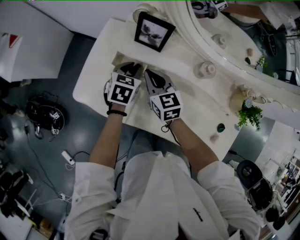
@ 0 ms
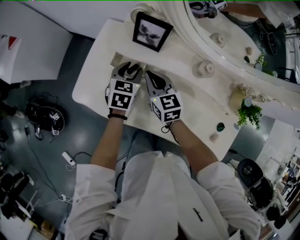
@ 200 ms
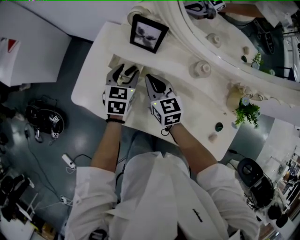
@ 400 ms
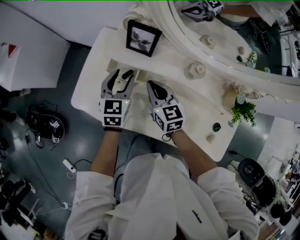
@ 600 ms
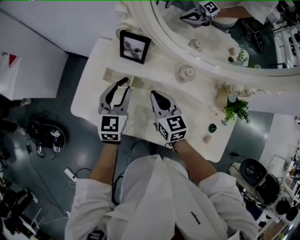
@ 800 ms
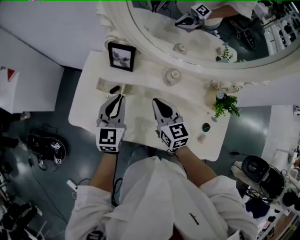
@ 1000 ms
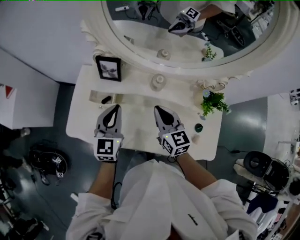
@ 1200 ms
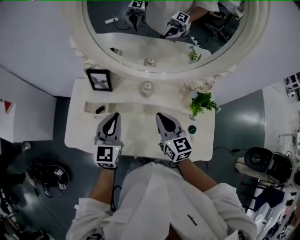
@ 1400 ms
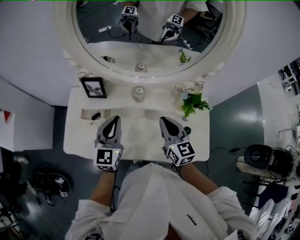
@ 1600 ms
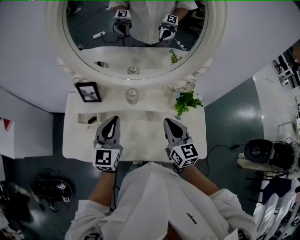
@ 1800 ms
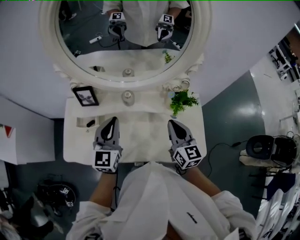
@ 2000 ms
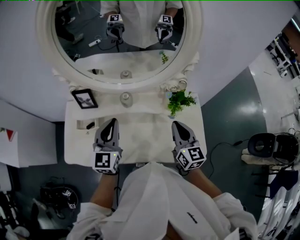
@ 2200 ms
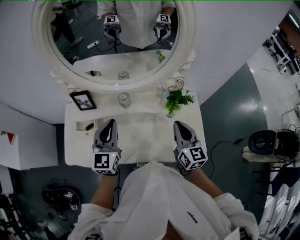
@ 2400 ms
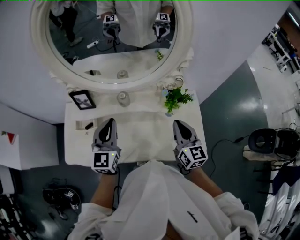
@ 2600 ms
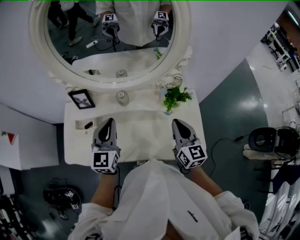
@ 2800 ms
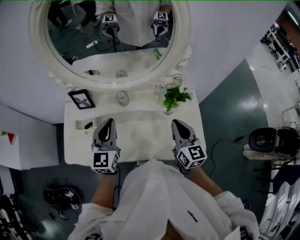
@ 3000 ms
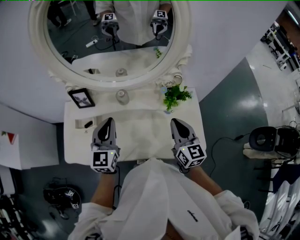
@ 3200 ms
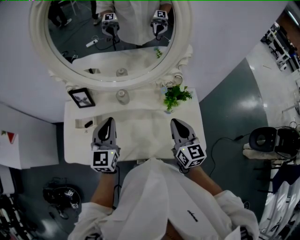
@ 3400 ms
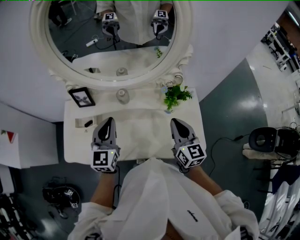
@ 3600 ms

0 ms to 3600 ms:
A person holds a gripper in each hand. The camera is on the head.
0 ms to 1800 ms: The left gripper is displaced upward, to the right and backward by some 35 cm, and angles its fingers upward, by about 40 degrees; the right gripper moves to the right, upward and backward, approximately 40 cm, and rotates some 30 degrees.
1800 ms to 3600 ms: The right gripper heads to the right, covering roughly 10 cm.

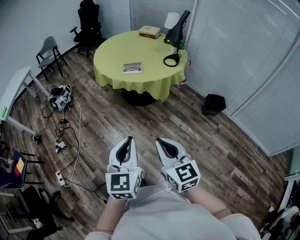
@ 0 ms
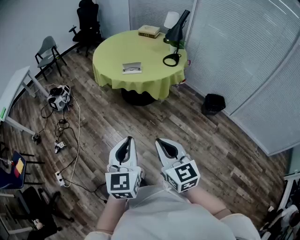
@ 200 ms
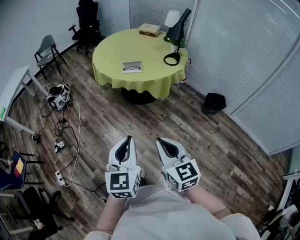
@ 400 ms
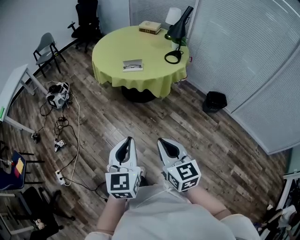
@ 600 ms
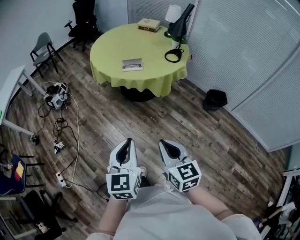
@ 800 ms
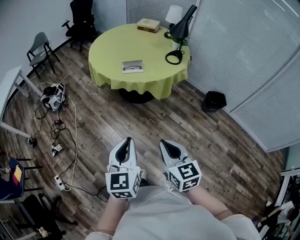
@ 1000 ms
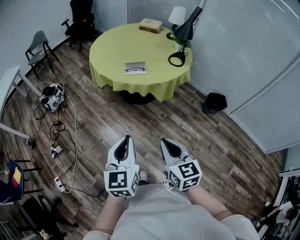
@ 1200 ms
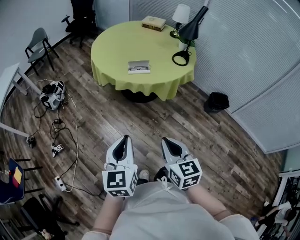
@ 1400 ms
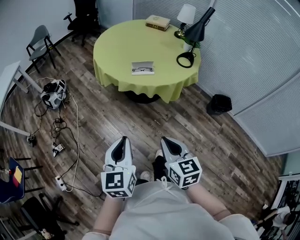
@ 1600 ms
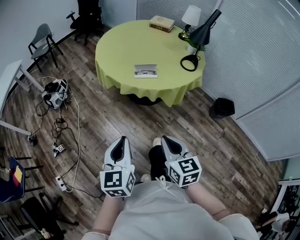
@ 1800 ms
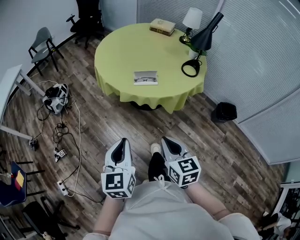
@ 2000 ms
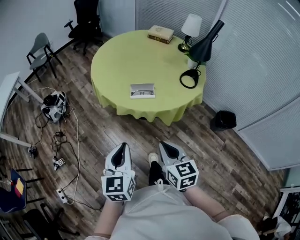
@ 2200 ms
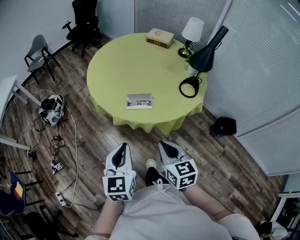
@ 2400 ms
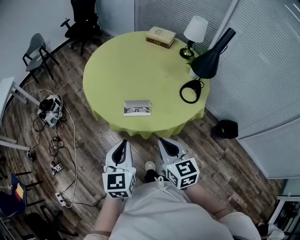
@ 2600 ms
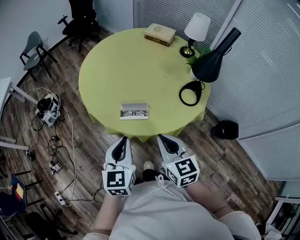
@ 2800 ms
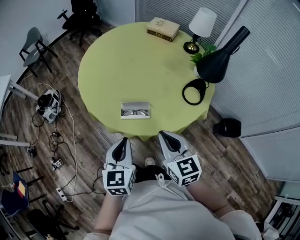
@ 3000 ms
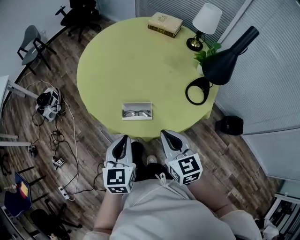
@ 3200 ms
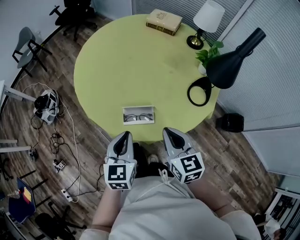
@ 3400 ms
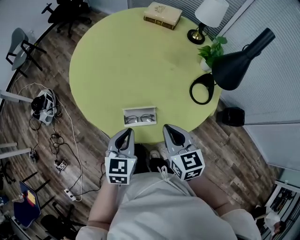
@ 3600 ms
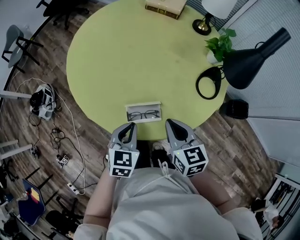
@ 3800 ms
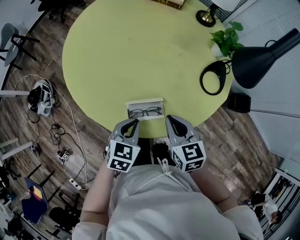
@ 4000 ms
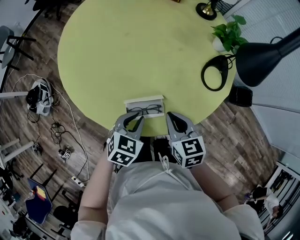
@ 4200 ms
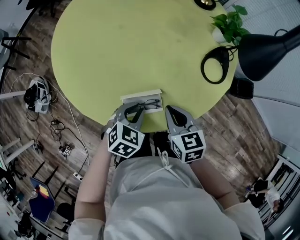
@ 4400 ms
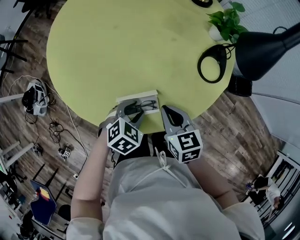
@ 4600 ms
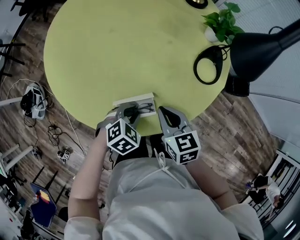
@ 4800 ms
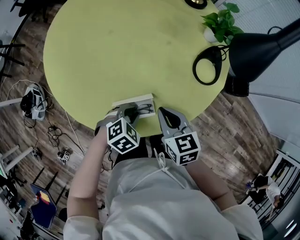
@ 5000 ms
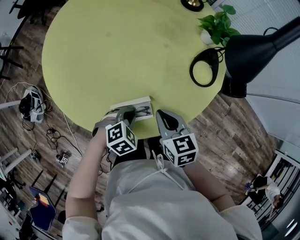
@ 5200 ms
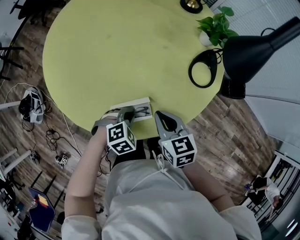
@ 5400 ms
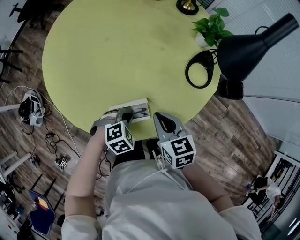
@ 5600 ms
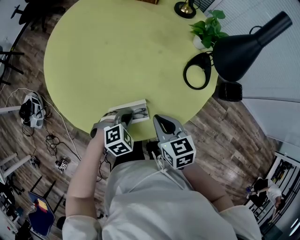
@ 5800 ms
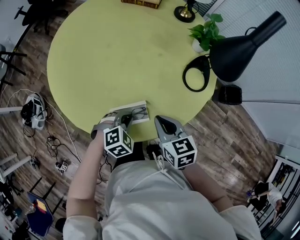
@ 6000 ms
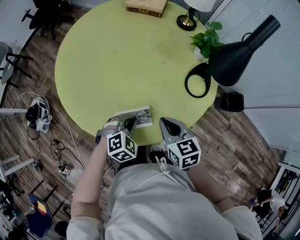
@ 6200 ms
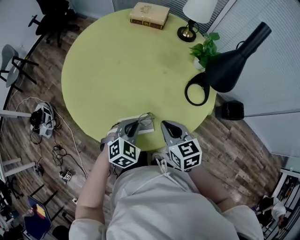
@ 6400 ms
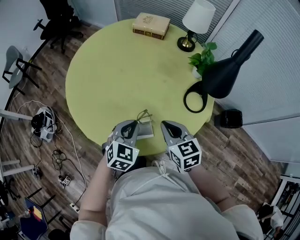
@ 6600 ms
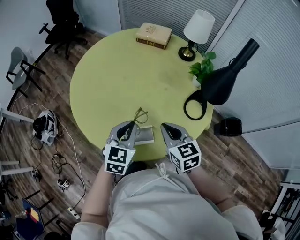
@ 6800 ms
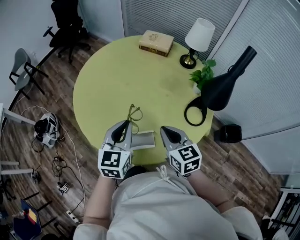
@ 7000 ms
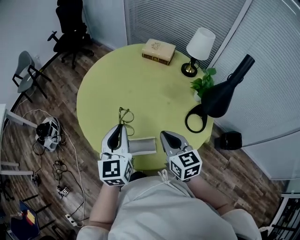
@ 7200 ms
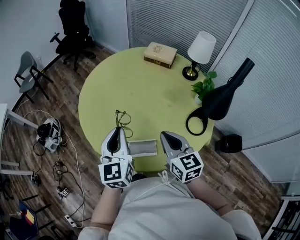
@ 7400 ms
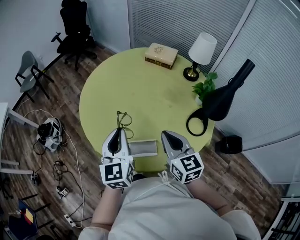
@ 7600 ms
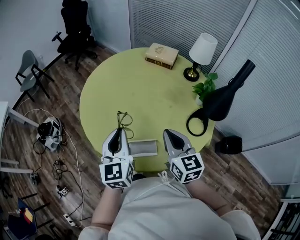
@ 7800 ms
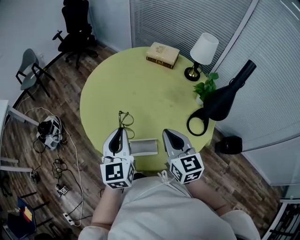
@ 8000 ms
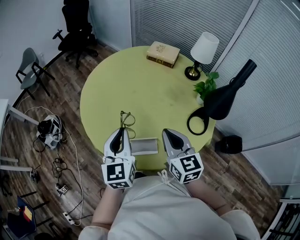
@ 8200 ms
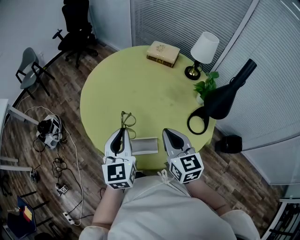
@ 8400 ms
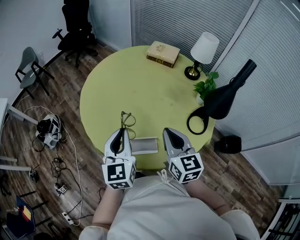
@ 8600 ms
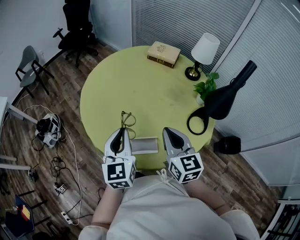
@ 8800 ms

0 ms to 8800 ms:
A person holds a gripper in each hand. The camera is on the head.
0 ms to 1400 ms: The right gripper moves forward and downward, about 20 cm; the left gripper moves forward and to the left, roughly 20 cm.
1400 ms to 3000 ms: The pair of grippers is taken forward, about 50 cm.
3000 ms to 4400 ms: The two grippers go approximately 25 cm downward and forward. The left gripper tips its fingers downward by roughly 30 degrees. The right gripper changes its angle by roughly 20 degrees.
4400 ms to 5800 ms: The left gripper changes its angle by about 30 degrees, and opens, then closes once more.
5800 ms to 7400 ms: The left gripper moves upward, approximately 30 cm, and tips its fingers upward by some 60 degrees. Meanwhile the right gripper moves upward, roughly 15 cm, and swivels roughly 20 degrees.
7400 ms to 8800 ms: There are only small adjustments of the grippers.

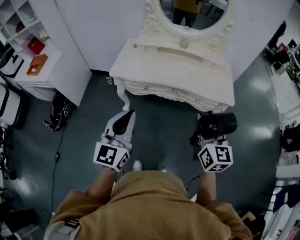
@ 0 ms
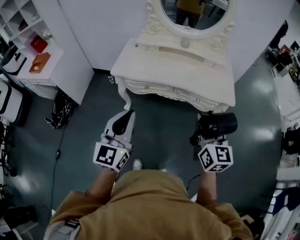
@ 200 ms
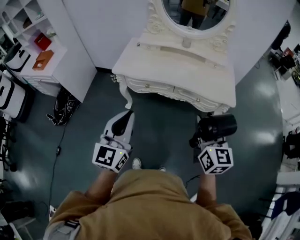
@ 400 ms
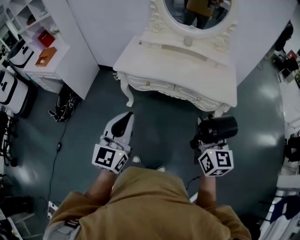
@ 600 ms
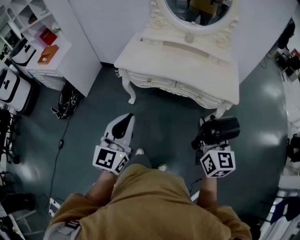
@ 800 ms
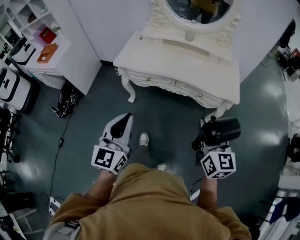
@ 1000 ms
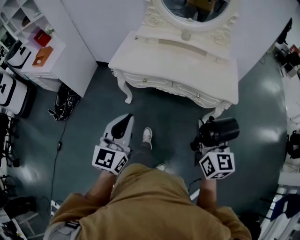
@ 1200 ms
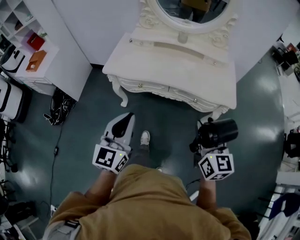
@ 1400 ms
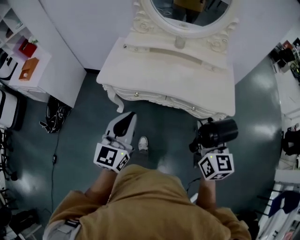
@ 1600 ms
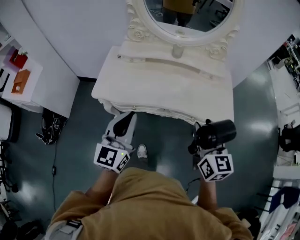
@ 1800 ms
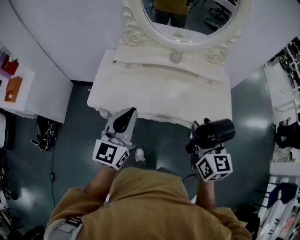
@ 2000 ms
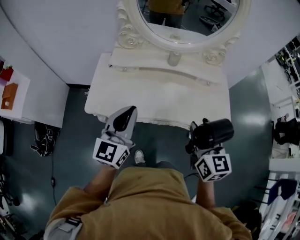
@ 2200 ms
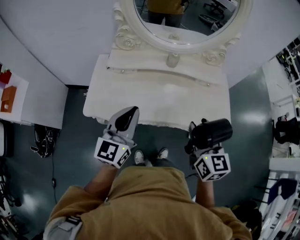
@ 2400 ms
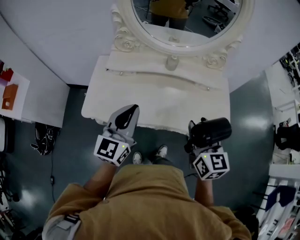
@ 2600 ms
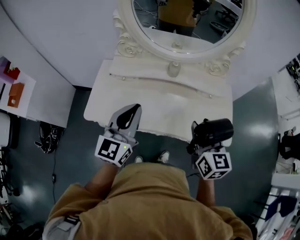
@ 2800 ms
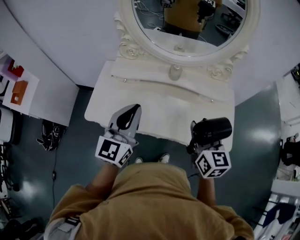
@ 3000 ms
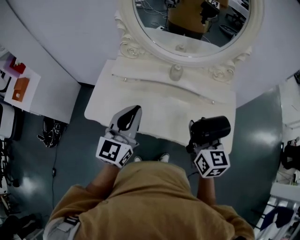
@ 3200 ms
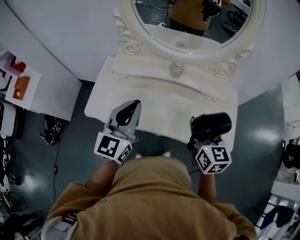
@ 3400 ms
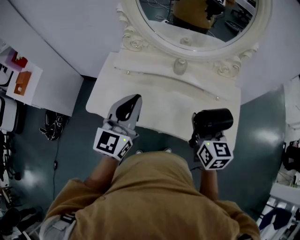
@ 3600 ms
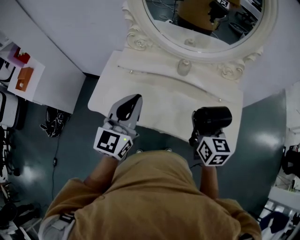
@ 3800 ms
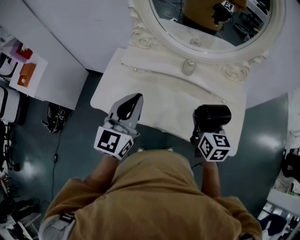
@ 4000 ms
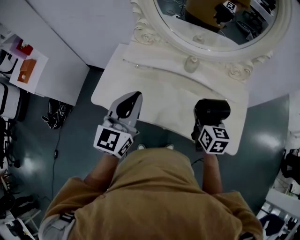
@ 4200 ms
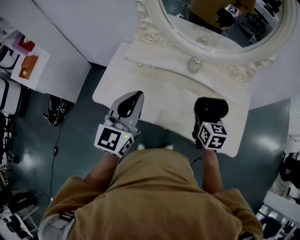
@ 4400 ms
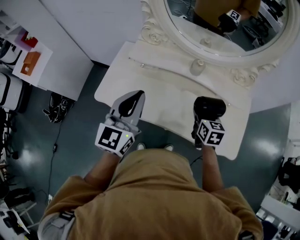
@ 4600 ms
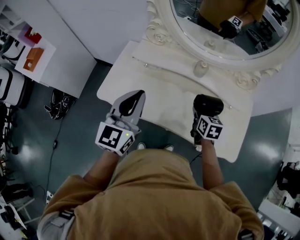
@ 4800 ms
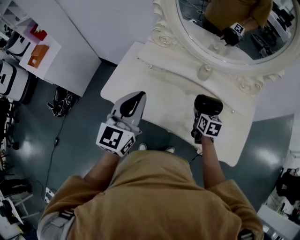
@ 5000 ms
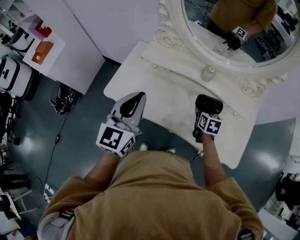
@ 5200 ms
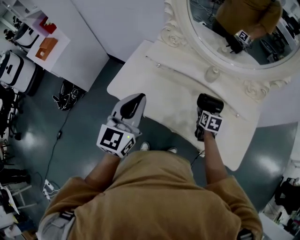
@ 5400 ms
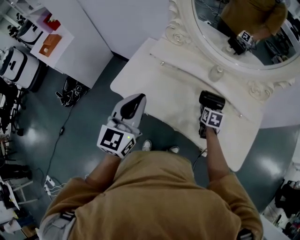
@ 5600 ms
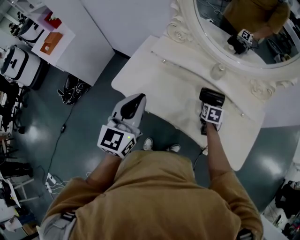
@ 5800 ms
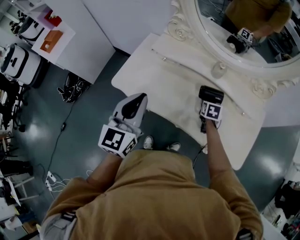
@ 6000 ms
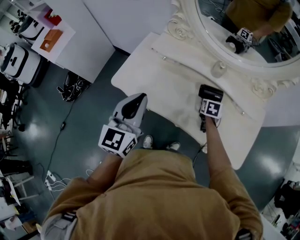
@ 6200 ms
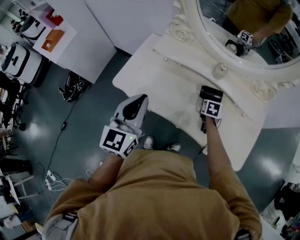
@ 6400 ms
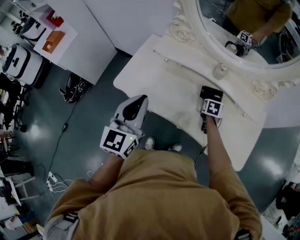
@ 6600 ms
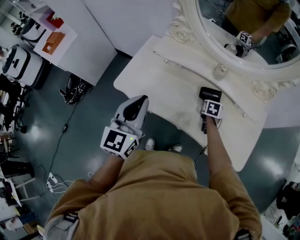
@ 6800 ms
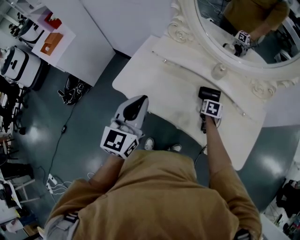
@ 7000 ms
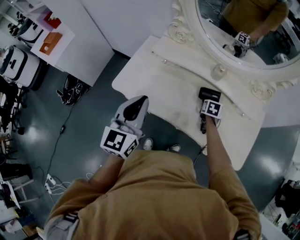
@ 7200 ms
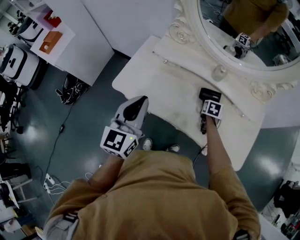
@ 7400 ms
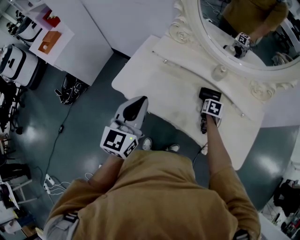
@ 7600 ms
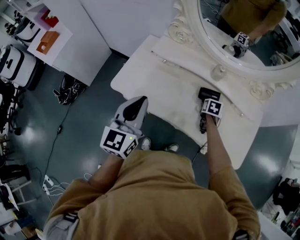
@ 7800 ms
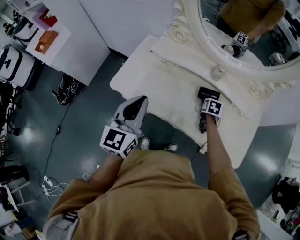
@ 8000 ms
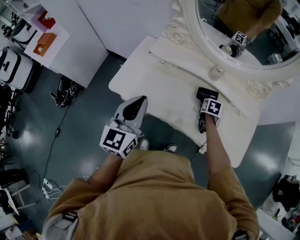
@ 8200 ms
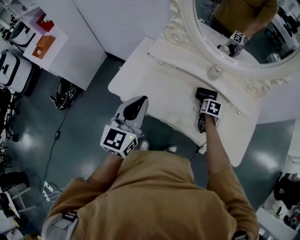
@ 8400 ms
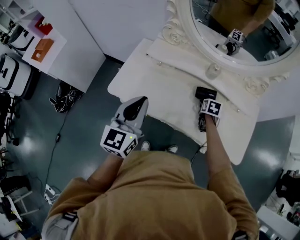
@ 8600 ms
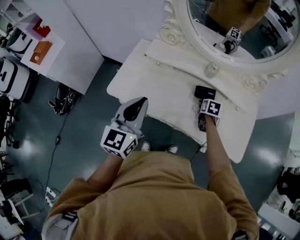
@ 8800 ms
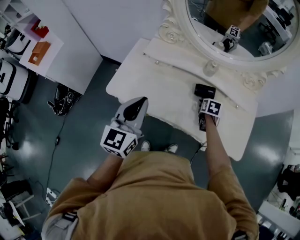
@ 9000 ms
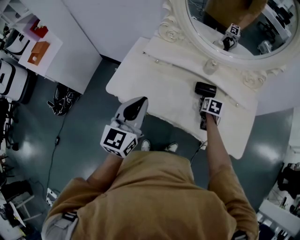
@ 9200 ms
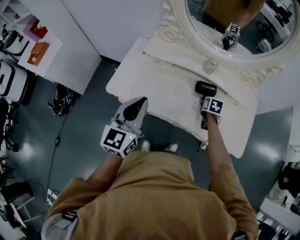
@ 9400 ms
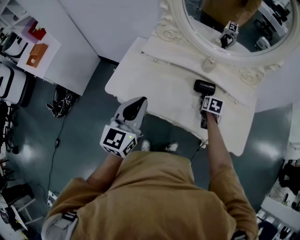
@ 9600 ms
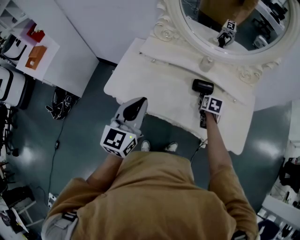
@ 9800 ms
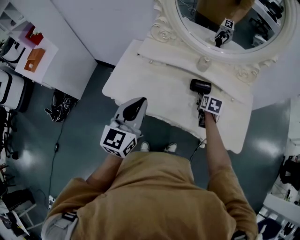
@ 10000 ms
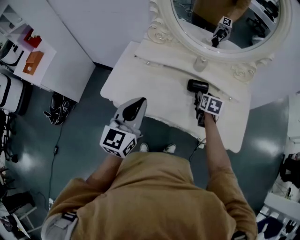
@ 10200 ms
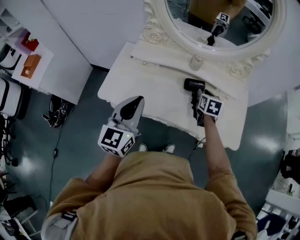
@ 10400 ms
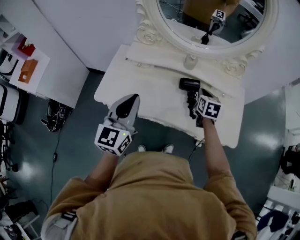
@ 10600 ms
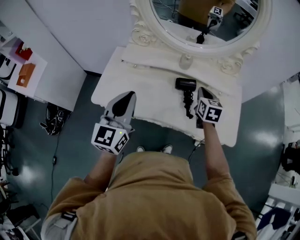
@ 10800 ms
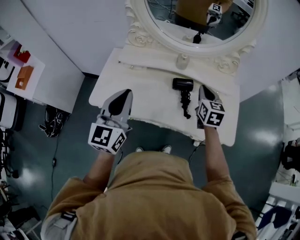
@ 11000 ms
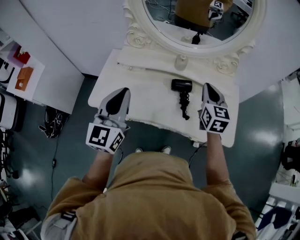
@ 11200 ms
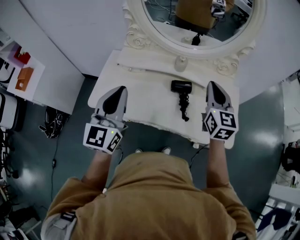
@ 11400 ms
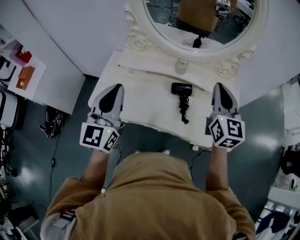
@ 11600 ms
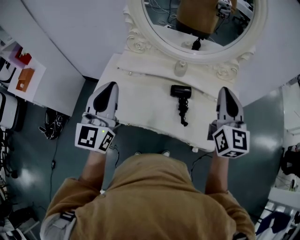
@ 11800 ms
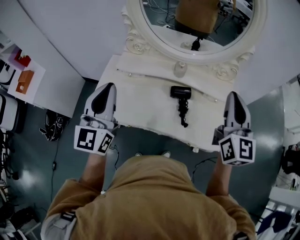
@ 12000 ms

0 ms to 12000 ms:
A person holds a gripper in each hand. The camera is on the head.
0 ms to 1600 ms: The grippers both shift forward and to the right by roughly 15 cm.
1600 ms to 3000 ms: Both grippers travel together forward, about 30 cm.
3000 ms to 4400 ms: The right gripper moves downward and forward, roughly 15 cm.
4400 ms to 6000 ms: The left gripper shifts by about 5 cm; the right gripper is displaced downward and forward by roughly 20 cm, and turns by about 20 degrees.
6000 ms to 9000 ms: There are only small adjustments of the grippers.
9000 ms to 10400 ms: The right gripper goes about 10 cm upward, and closes up.
10400 ms to 12000 ms: The left gripper is displaced upward and forward by roughly 10 cm; the right gripper moves upward, approximately 30 cm, tilts its fingers approximately 40 degrees upward, and closes up.
